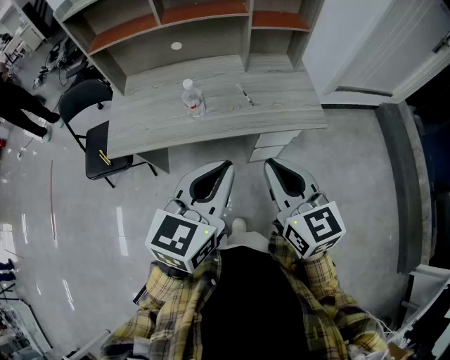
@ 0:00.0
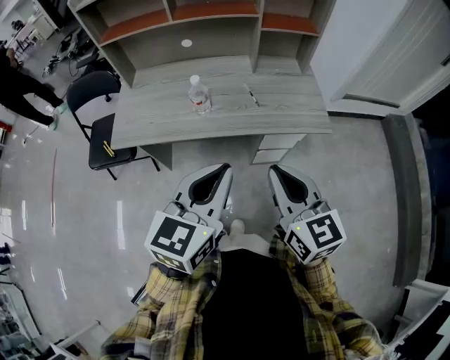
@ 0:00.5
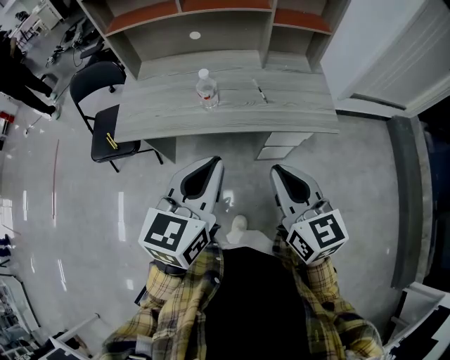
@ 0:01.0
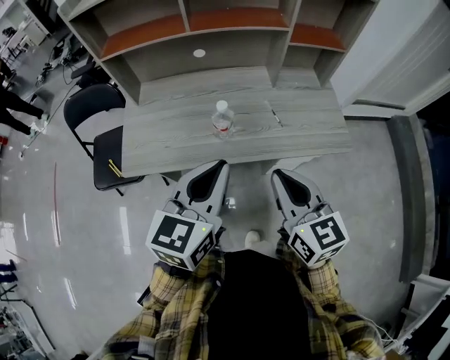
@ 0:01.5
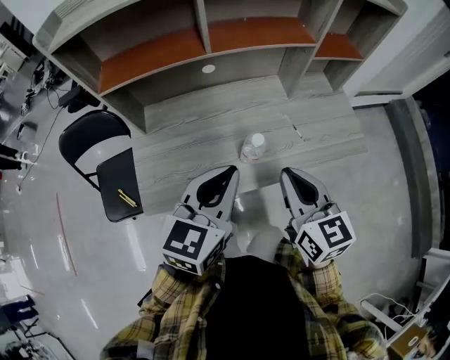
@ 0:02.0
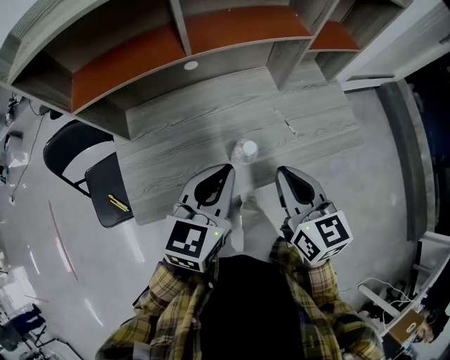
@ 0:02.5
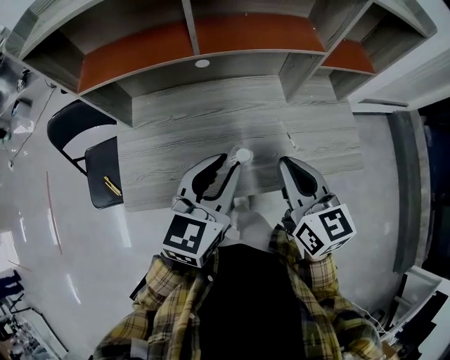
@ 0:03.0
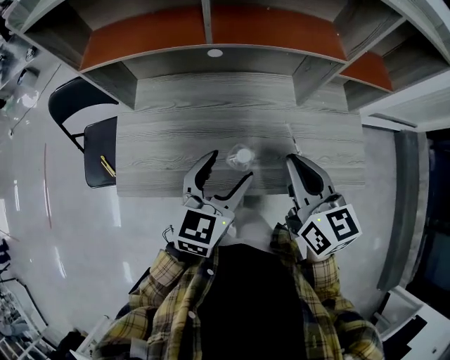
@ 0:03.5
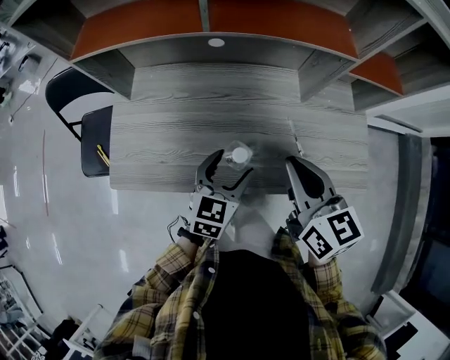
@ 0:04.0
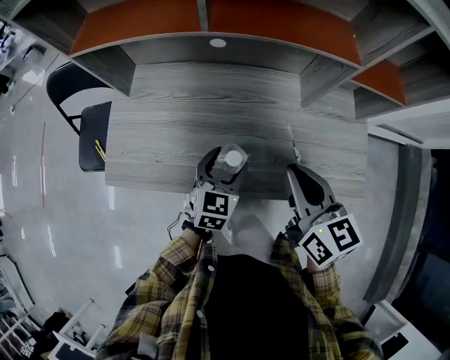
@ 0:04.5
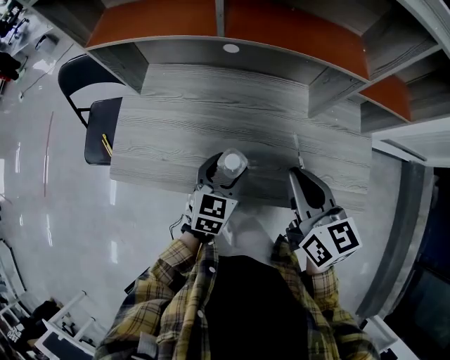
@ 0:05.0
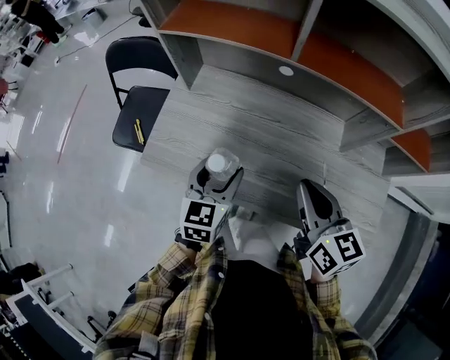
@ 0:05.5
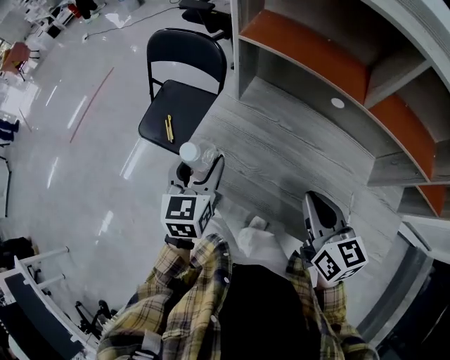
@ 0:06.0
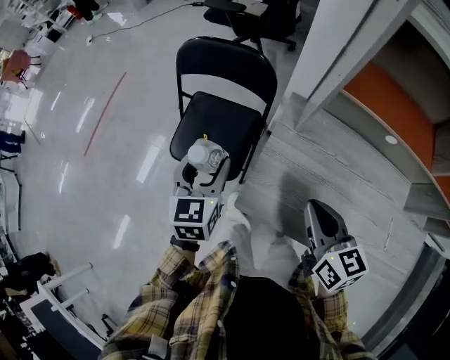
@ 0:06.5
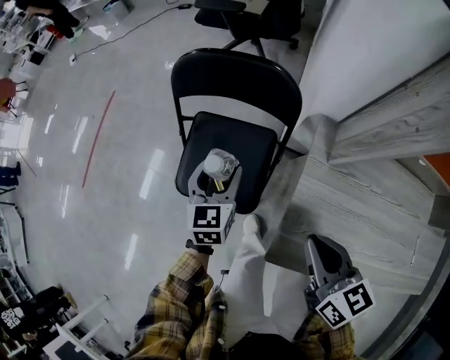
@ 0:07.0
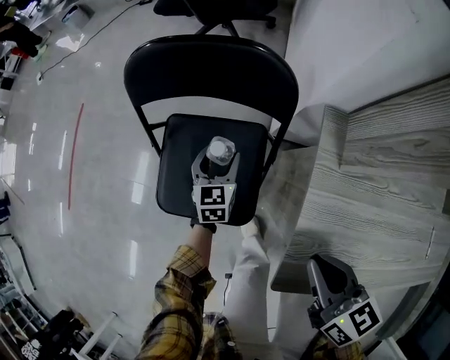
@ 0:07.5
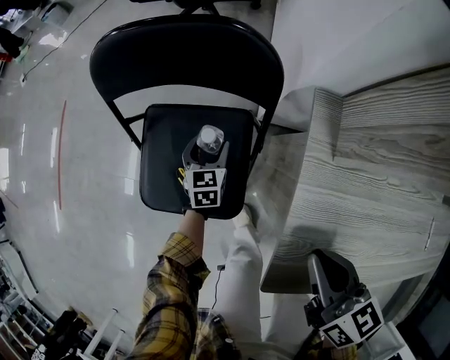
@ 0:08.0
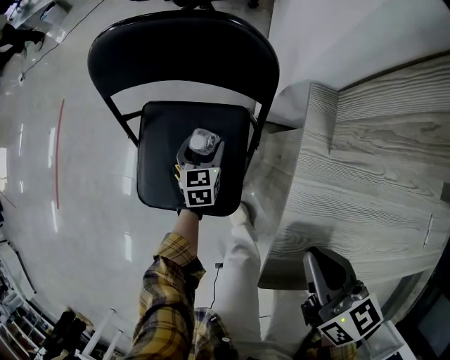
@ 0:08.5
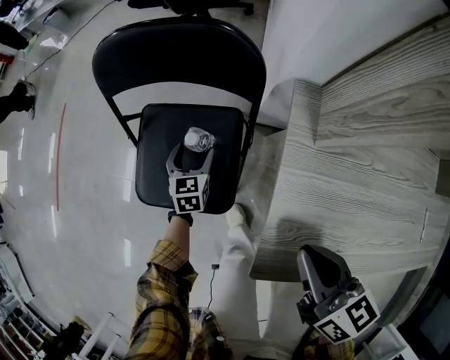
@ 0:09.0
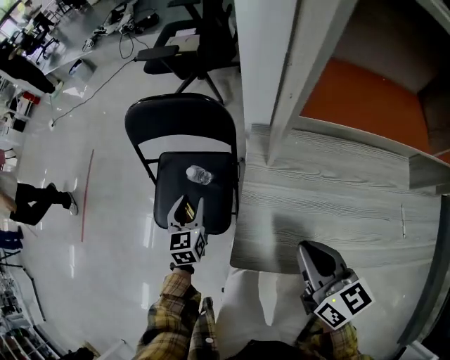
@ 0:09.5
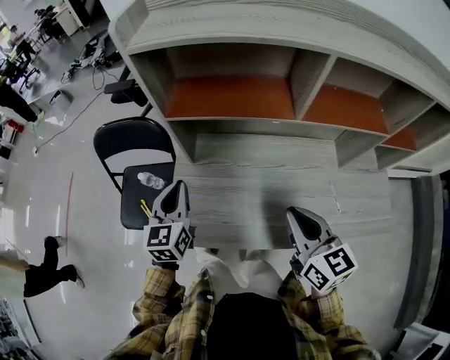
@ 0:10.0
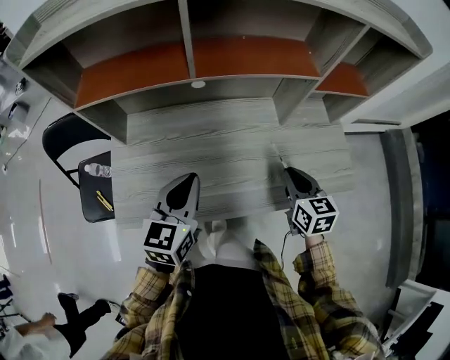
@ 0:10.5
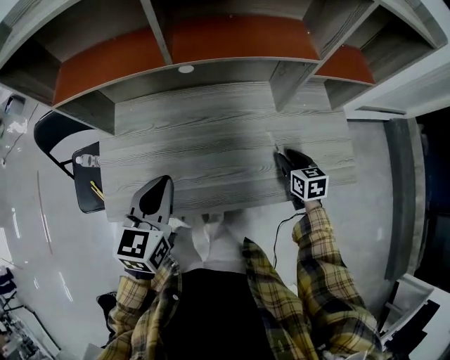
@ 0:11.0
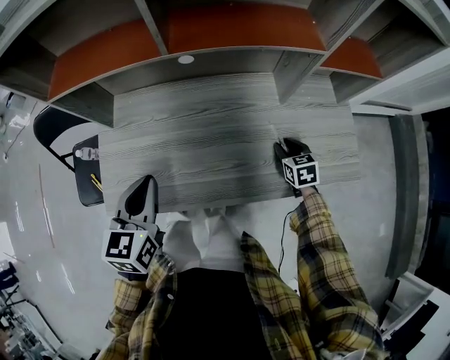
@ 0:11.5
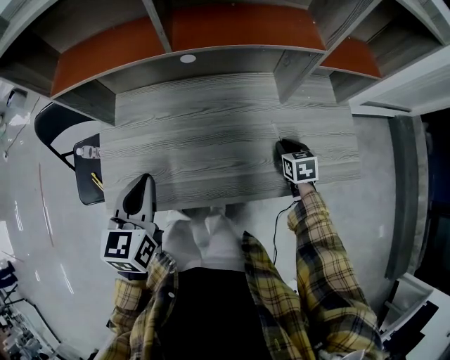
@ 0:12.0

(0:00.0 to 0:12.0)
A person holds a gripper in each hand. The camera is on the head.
0:00.0 - 0:02.0: Both grippers move forward and to the left, approximately 25 cm.
0:02.0 - 0:04.0: The left gripper travels downward by some 20 cm, and opens; the right gripper travels forward and to the right by some 10 cm.
0:04.0 - 0:06.0: The left gripper changes place by about 35 cm, and swivels roughly 40 degrees, while the right gripper ends up approximately 15 cm from where it was, and changes its angle by approximately 20 degrees.
0:06.0 - 0:08.0: The right gripper heads to the left, forward and downward, covering some 35 cm, and swivels roughly 20 degrees, while the left gripper goes roughly 50 cm downward and forward, and changes its angle by some 20 degrees.
0:08.0 - 0:10.0: The left gripper moves upward, to the right and backward, about 50 cm, swivels about 20 degrees, and closes its fingers. Meanwhile the right gripper travels to the right, upward and backward by some 40 cm, and changes its angle by roughly 30 degrees.
0:10.0 - 0:12.0: The right gripper moves downward and to the right, some 40 cm, and tips its fingers downward by approximately 40 degrees. The left gripper heads to the right and backward, covering roughly 20 cm.

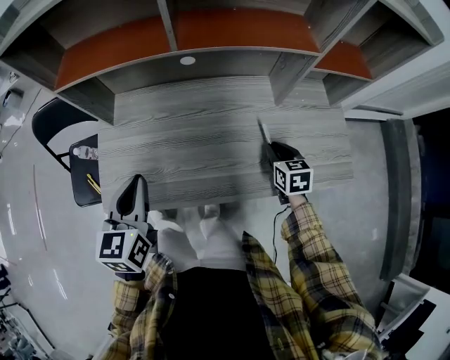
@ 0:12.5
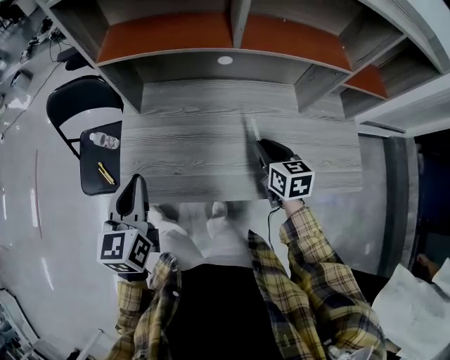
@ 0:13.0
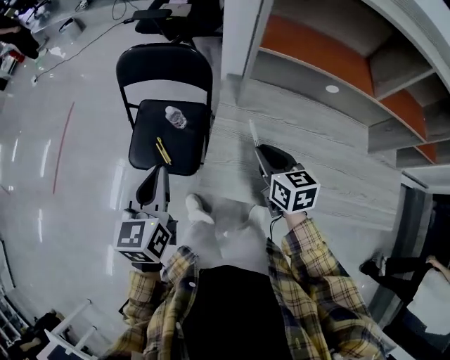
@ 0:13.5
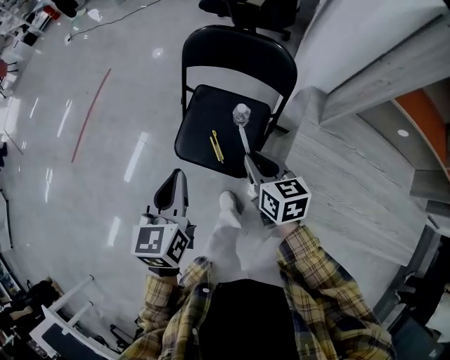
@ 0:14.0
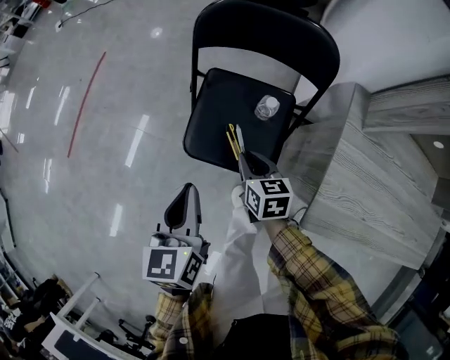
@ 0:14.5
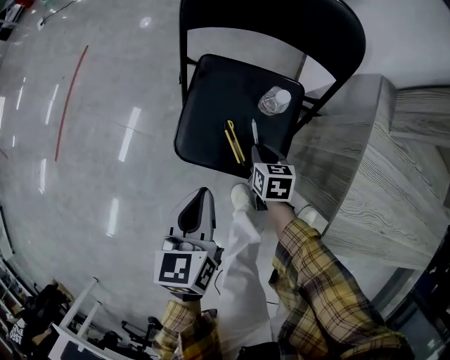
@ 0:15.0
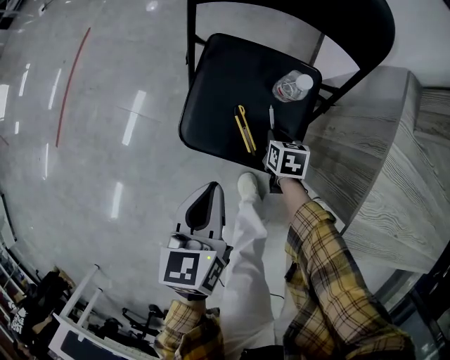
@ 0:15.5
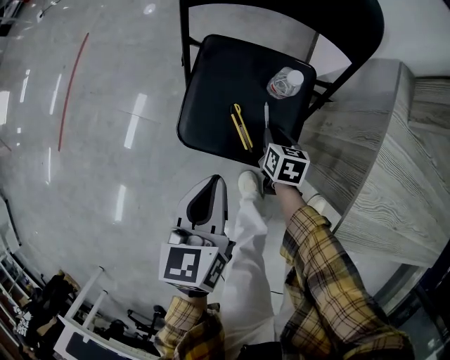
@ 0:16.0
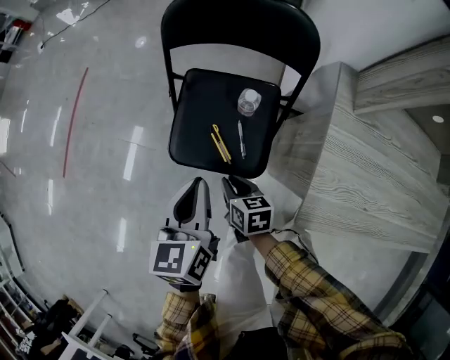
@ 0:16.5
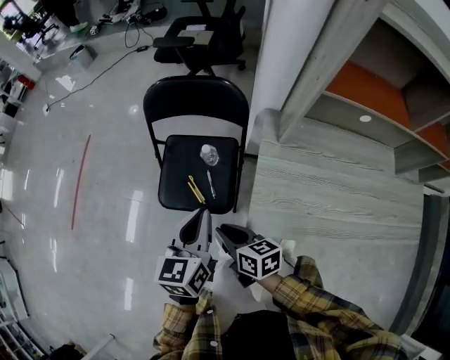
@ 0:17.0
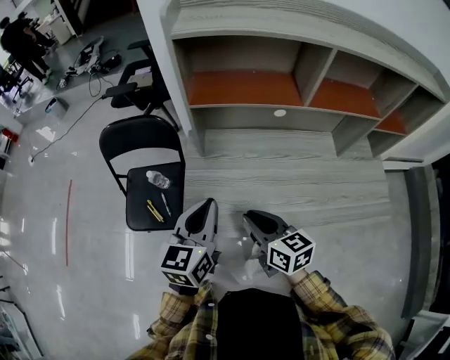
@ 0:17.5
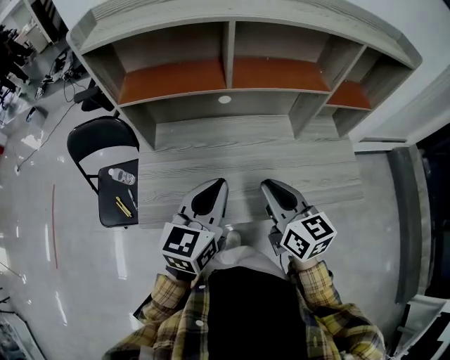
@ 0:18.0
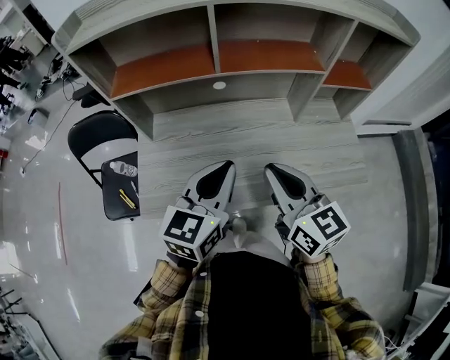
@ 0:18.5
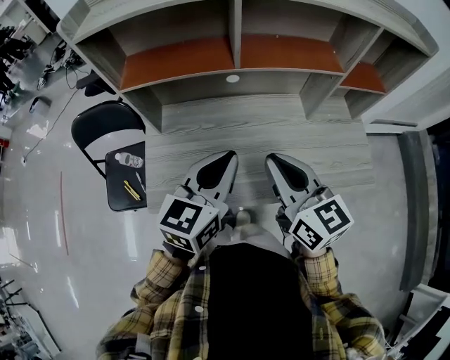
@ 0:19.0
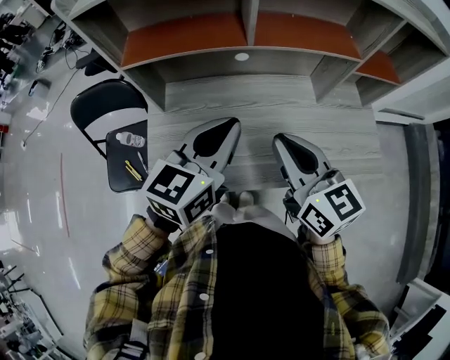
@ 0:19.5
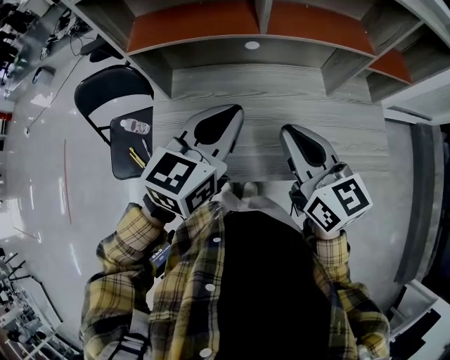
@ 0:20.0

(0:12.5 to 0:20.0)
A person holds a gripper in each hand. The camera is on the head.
0:12.5 - 0:14.5: Both grippers are carried approximately 70 cm. The right gripper swivels some 30 degrees, while the left gripper rotates some 30 degrees.
0:14.5 - 0:16.5: The left gripper moves to the right, roughly 5 cm, and goes downward and returns, approximately 15 cm each way; the right gripper shifts approximately 5 cm backward, and goes downward and returns, some 25 cm each way.
0:16.5 - 0:18.0: The two grippers travel together, about 60 cm. The left gripper swivels roughly 40 degrees; the right gripper points its fingers roughly 30 degrees further upward.
0:18.0 - 0:20.0: The right gripper moves approximately 5 cm. The left gripper travels forward by approximately 5 cm.

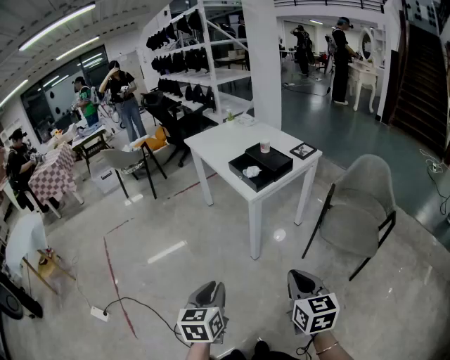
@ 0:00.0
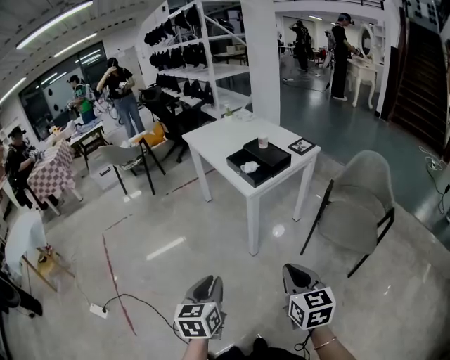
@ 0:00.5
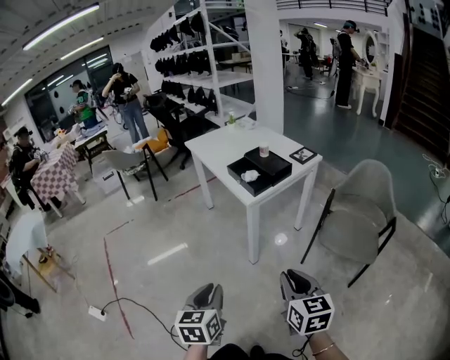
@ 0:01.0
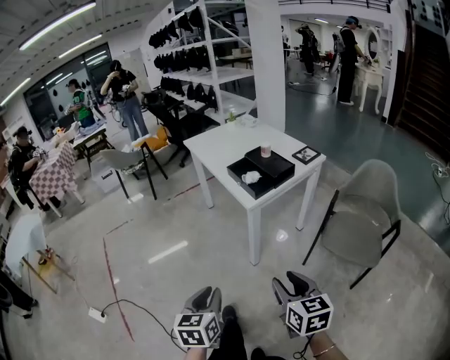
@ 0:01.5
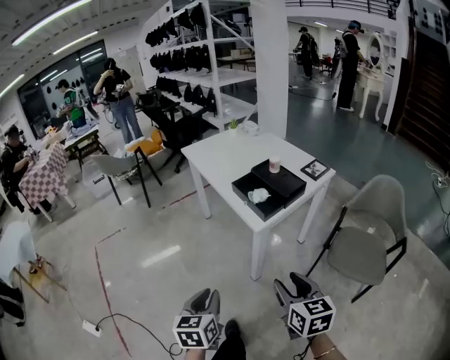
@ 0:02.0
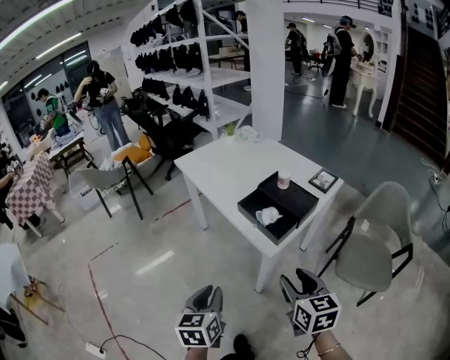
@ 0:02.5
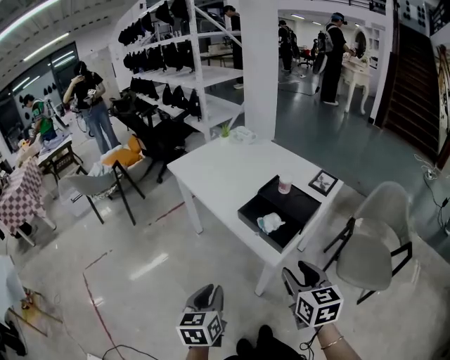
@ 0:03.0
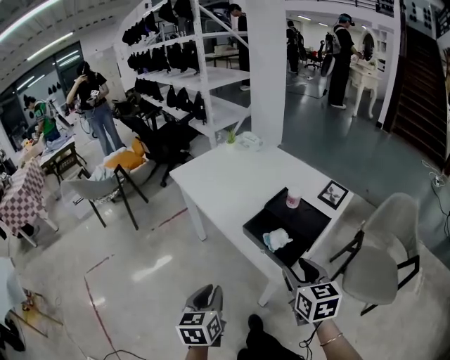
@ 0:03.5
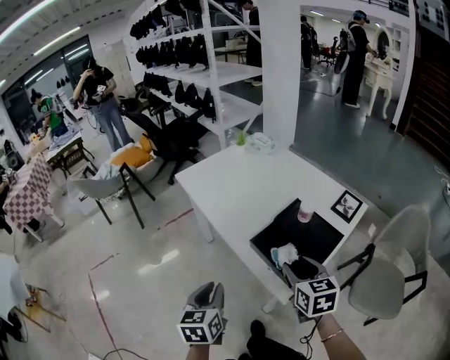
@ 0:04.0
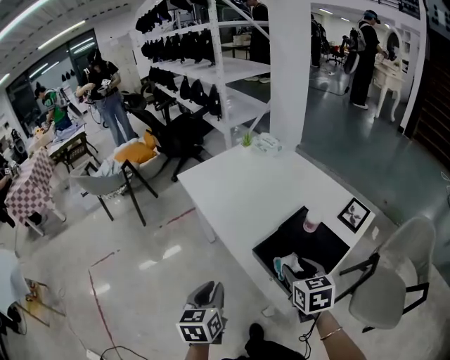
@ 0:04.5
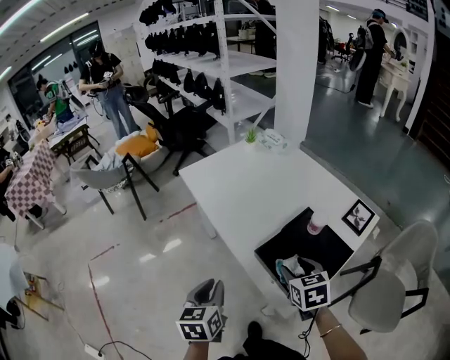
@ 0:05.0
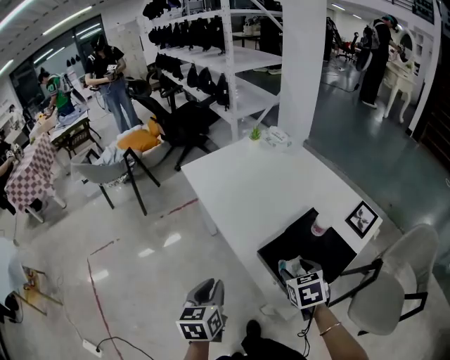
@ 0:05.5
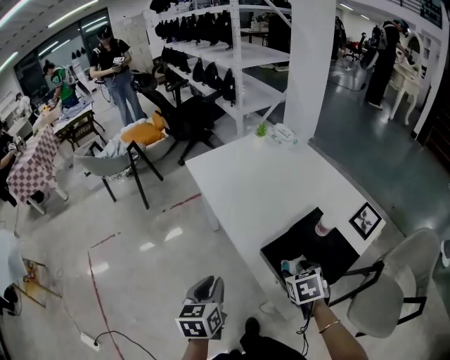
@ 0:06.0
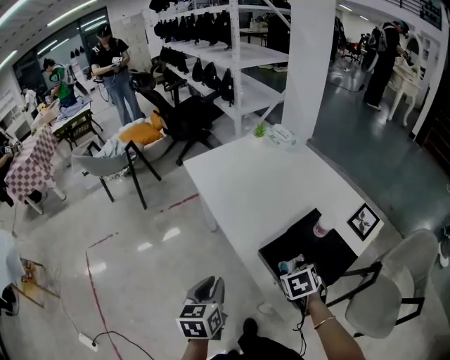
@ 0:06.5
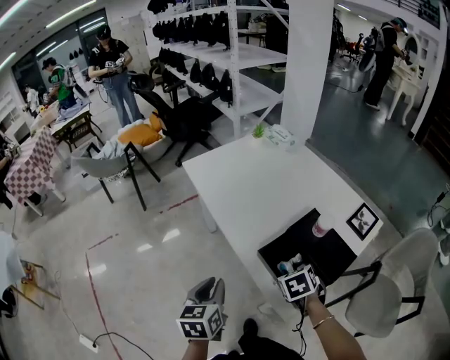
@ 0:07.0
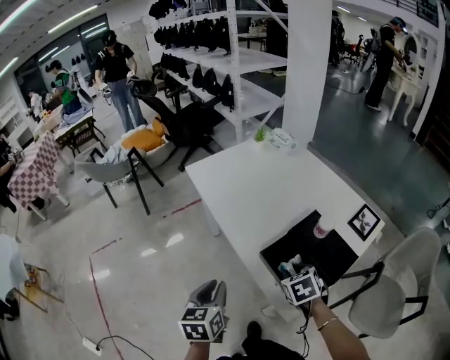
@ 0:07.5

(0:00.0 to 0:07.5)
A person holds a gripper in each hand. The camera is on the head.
0:00.0 - 0:02.0: Both grippers move forward, roughly 20 cm. The right gripper opens its fingers.
0:02.0 - 0:04.0: The two grippers go about 35 cm forward.
0:04.0 - 0:05.5: The right gripper is displaced downward and forward by roughly 10 cm, and rotates roughly 20 degrees; the left gripper is displaced forward by about 5 cm.
0:05.5 - 0:07.5: The right gripper closes its fingers.
